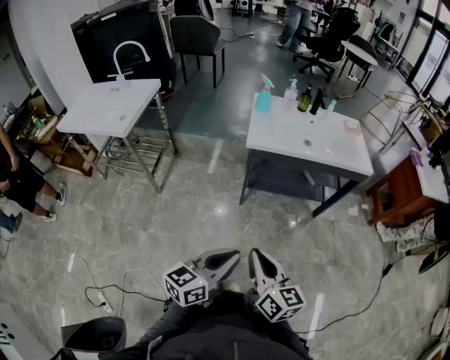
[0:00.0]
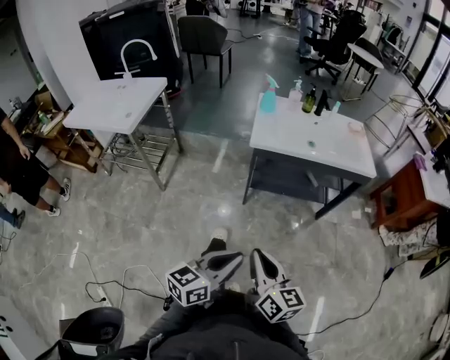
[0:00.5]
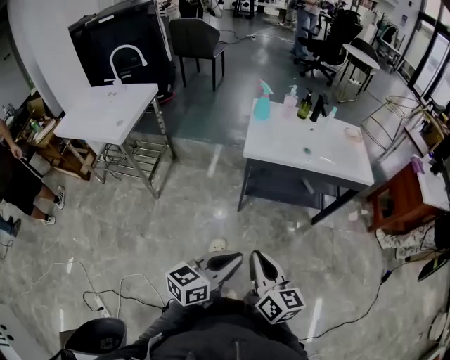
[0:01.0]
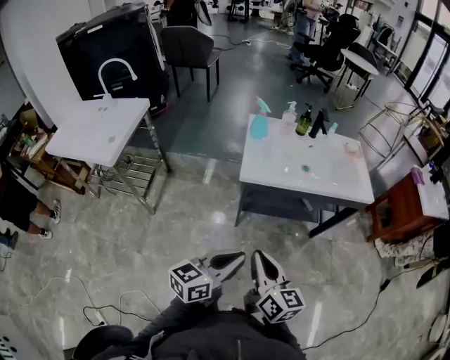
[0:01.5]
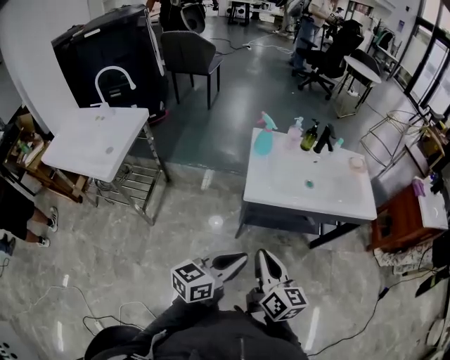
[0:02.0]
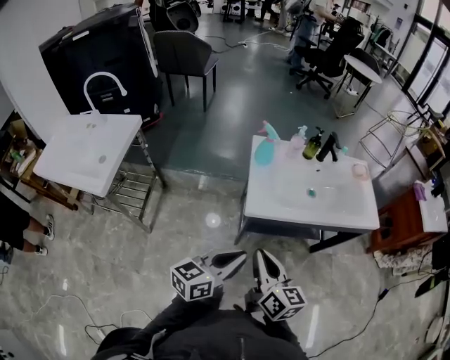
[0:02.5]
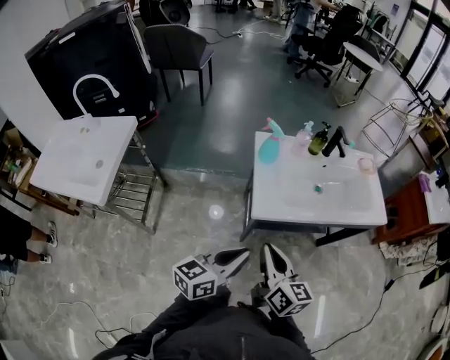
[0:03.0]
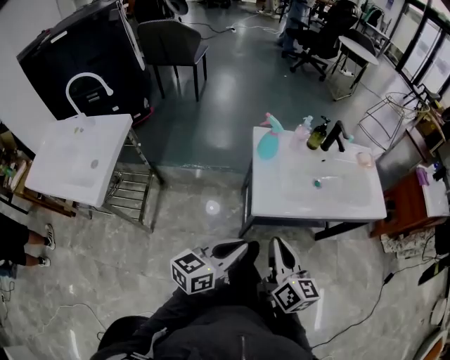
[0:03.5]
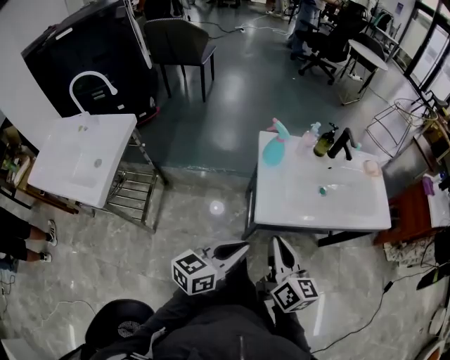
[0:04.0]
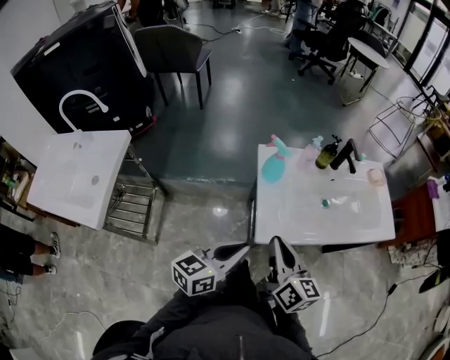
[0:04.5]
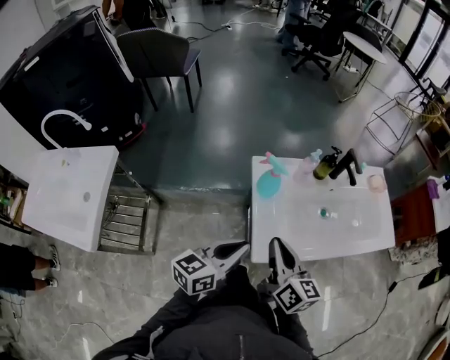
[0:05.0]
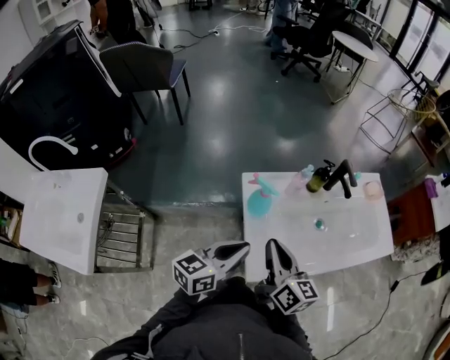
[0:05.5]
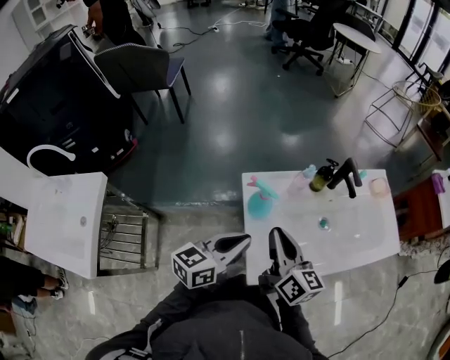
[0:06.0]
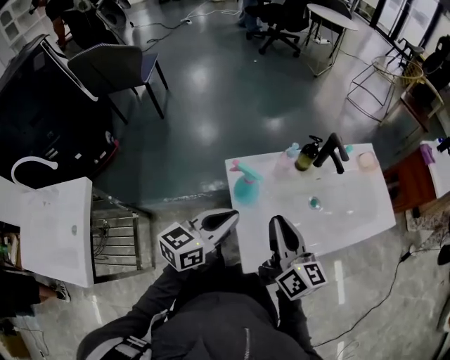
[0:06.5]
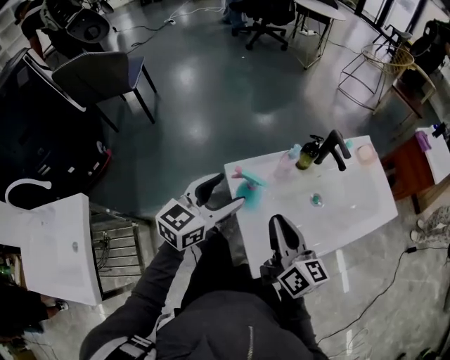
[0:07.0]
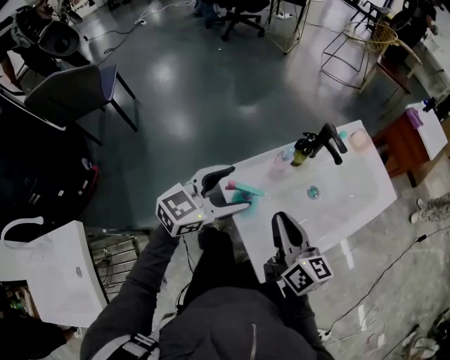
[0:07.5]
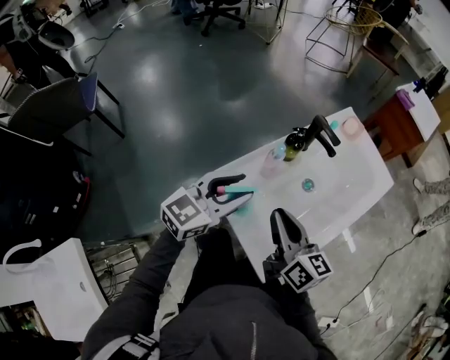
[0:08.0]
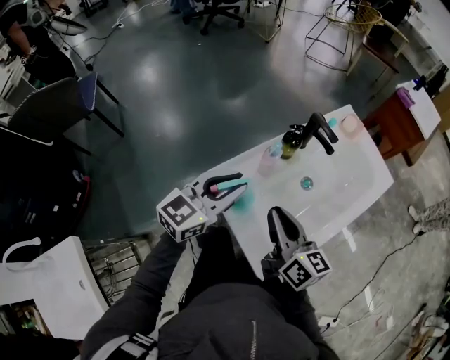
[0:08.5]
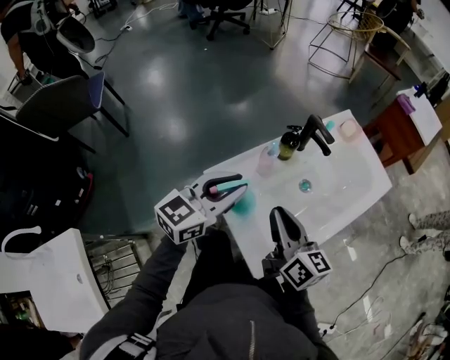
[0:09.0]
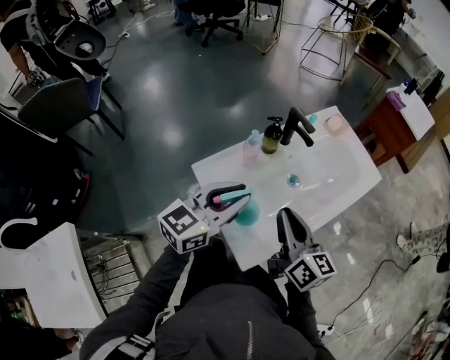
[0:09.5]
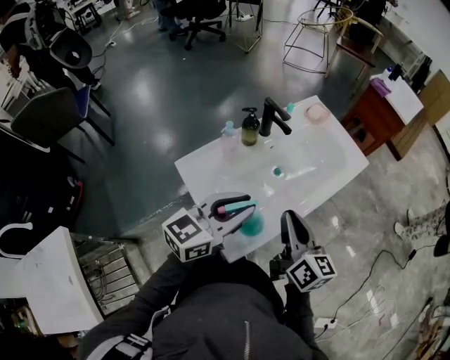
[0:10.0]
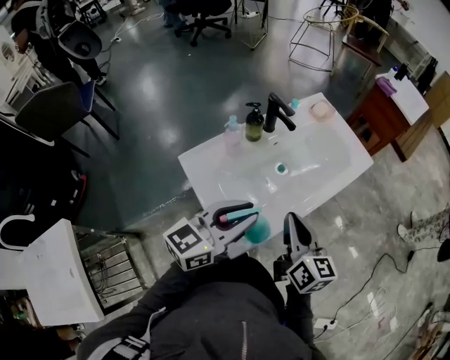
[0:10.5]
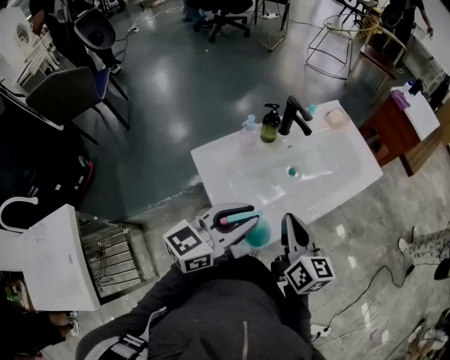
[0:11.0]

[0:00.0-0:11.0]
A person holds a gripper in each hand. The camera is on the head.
0:00.0 to 0:02.0: Both grippers travel together forward, some 25 cm.
0:02.0 to 0:03.5: Both grippers move forward and to the left, some 15 cm.
0:03.5 to 0:05.5: Both grippers travel together forward, some 25 cm.
0:05.5 to 0:07.5: The left gripper heads forward, covering about 15 cm, rotates approximately 40 degrees, and opens; the right gripper heads forward, covering roughly 10 cm.
0:07.5 to 0:09.0: The left gripper closes up.
0:09.0 to 0:11.0: The right gripper moves to the right, about 10 cm, while the left gripper goes roughly 15 cm to the right and backward.

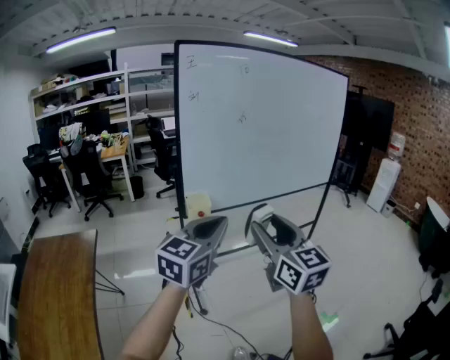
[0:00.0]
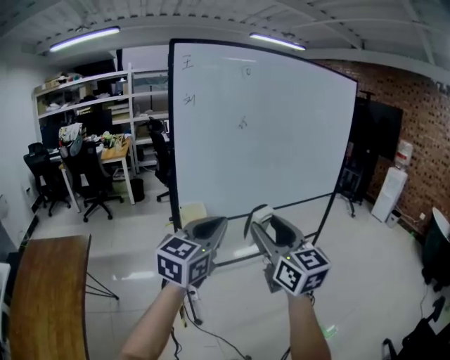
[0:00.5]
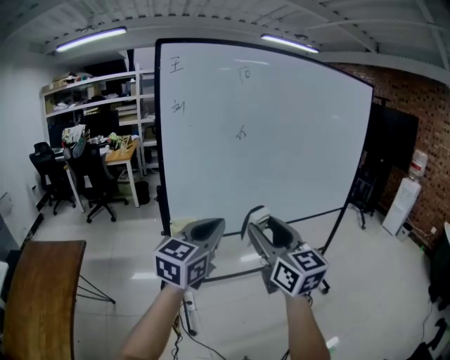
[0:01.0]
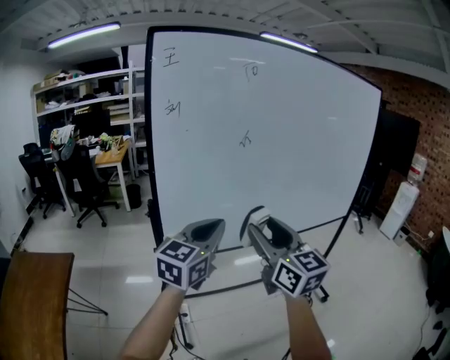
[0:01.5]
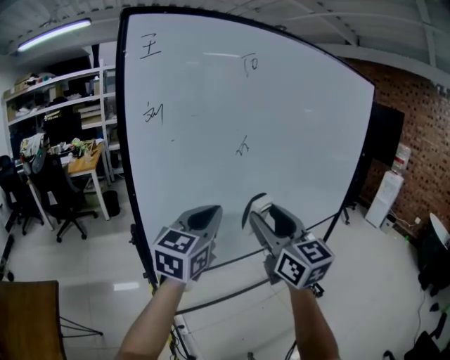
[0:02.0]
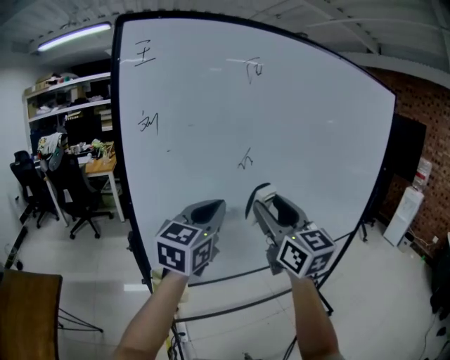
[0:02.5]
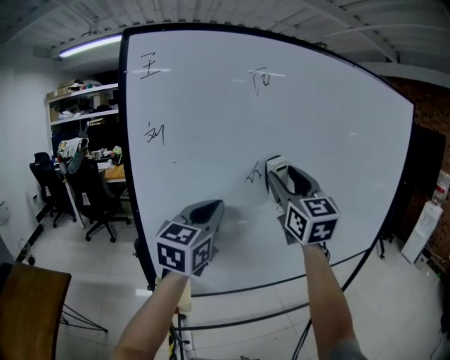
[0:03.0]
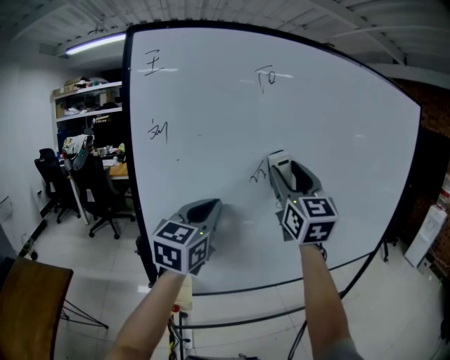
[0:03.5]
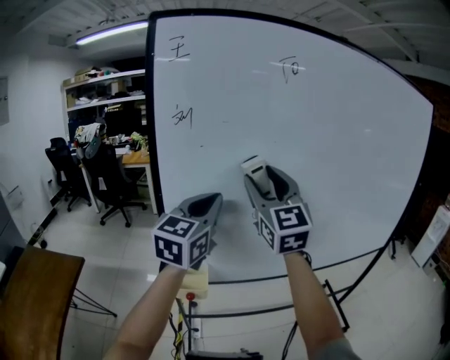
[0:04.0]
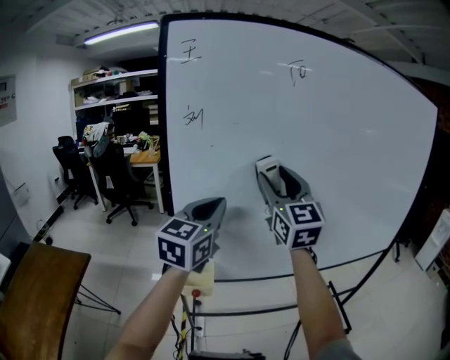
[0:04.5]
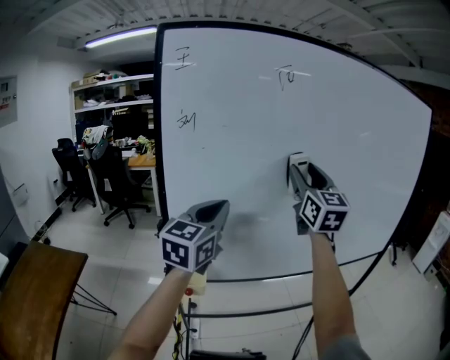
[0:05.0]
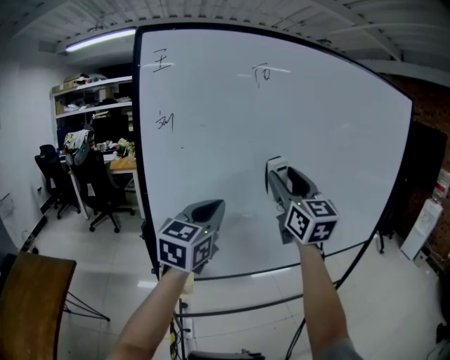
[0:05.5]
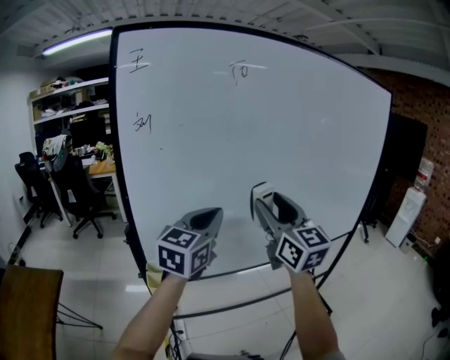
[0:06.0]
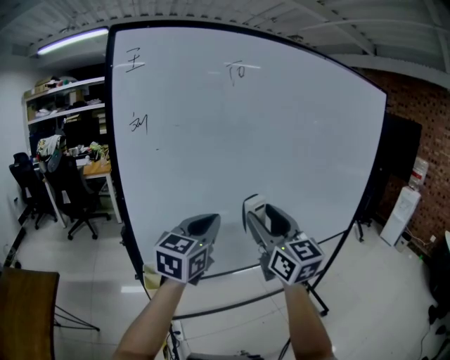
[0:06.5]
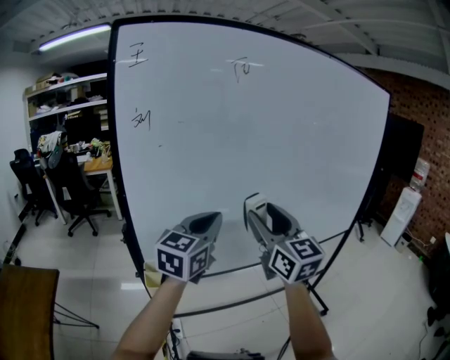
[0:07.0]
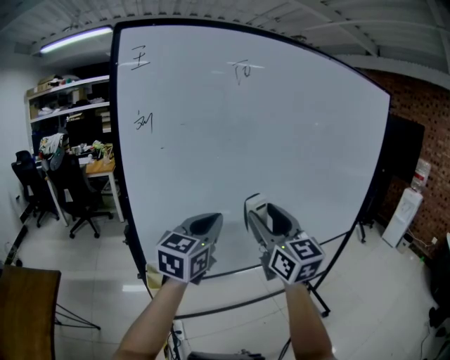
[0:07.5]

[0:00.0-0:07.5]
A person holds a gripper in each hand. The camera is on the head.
0:00.0 to 0:02.0: Both grippers travel together forward, roughly 40 cm.
0:02.0 to 0:04.0: The right gripper is displaced forward, upward and to the left by roughly 15 cm, and turns by roughly 20 degrees. Meanwhile the left gripper travels to the left and forward by about 10 cm.
0:04.0 to 0:05.5: The left gripper shifts roughly 5 cm to the right; the right gripper shifts some 10 cm to the right.
0:05.5 to 0:07.5: The right gripper moves downward and backward, some 10 cm. Meanwhile the left gripper changes place by about 5 cm.

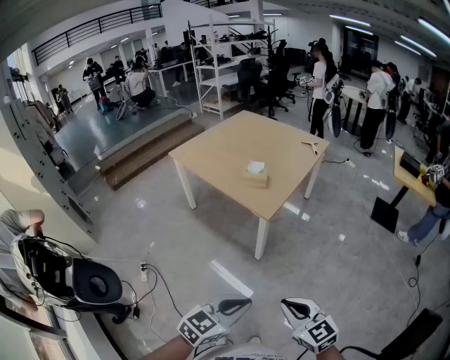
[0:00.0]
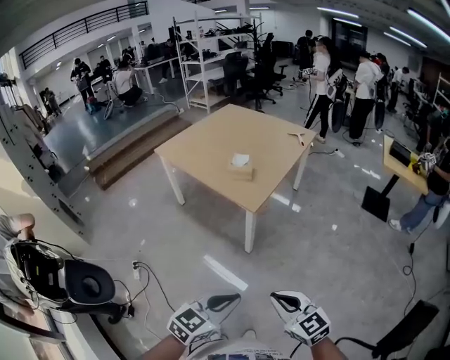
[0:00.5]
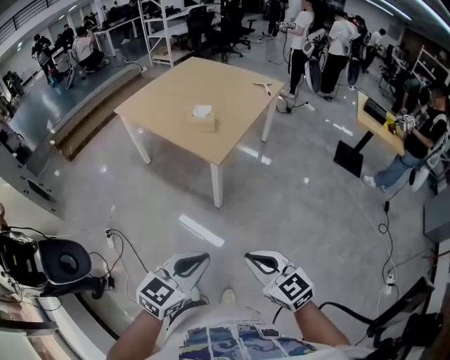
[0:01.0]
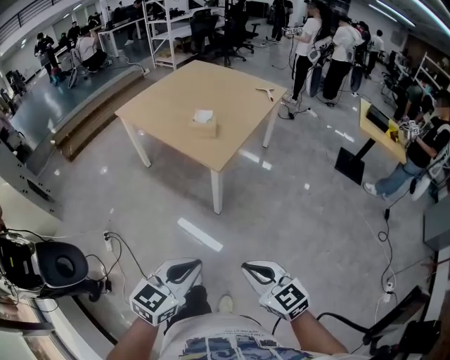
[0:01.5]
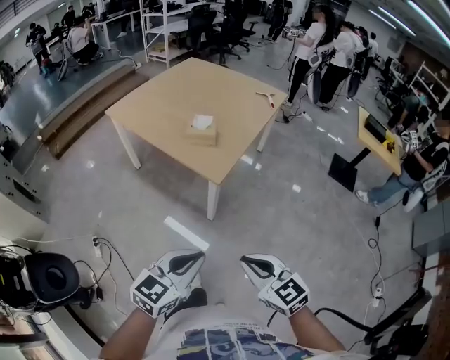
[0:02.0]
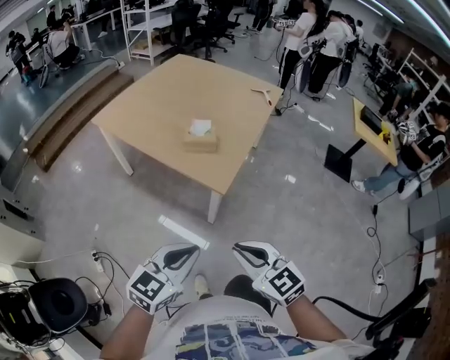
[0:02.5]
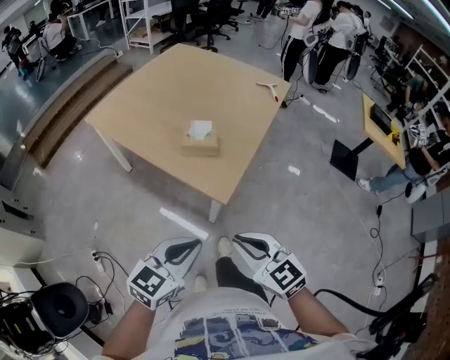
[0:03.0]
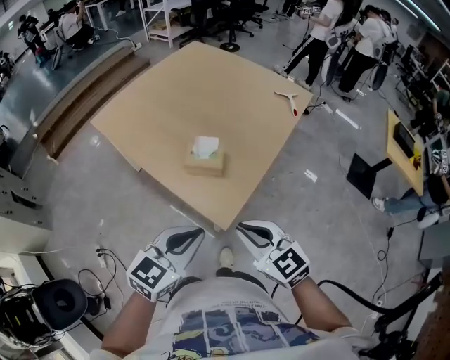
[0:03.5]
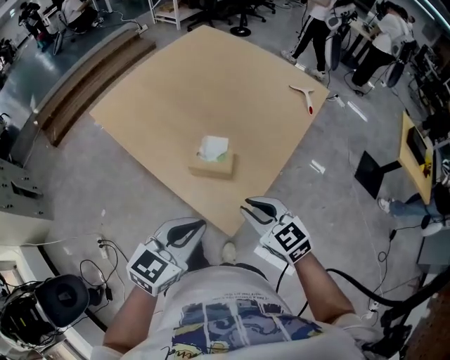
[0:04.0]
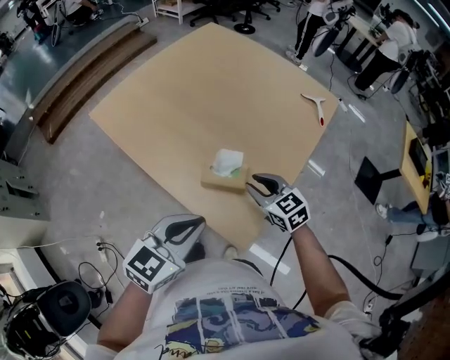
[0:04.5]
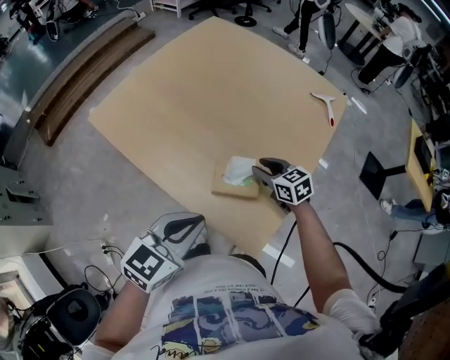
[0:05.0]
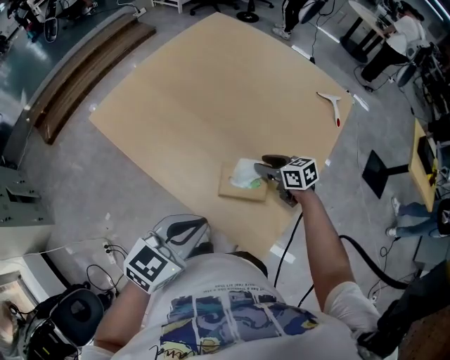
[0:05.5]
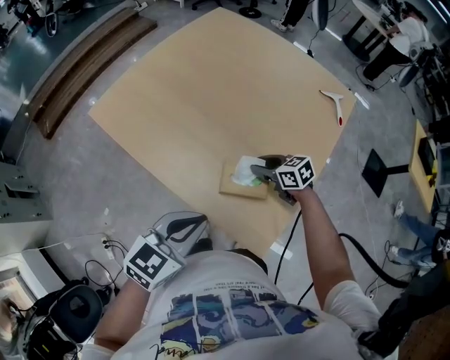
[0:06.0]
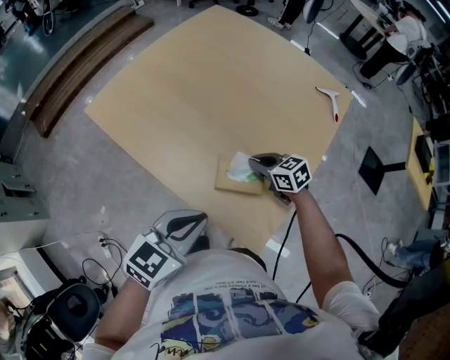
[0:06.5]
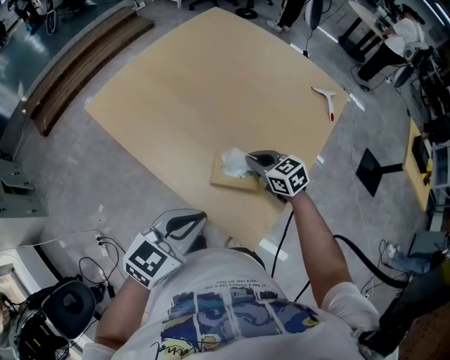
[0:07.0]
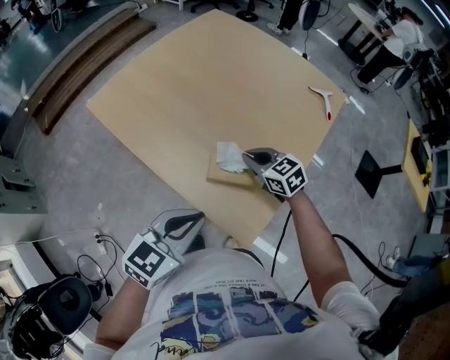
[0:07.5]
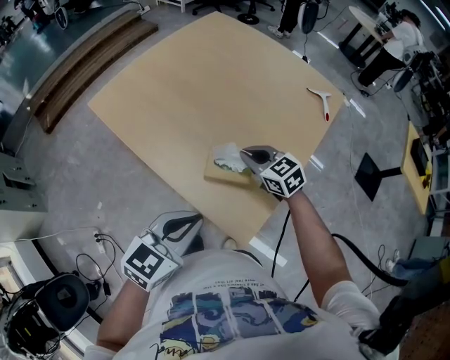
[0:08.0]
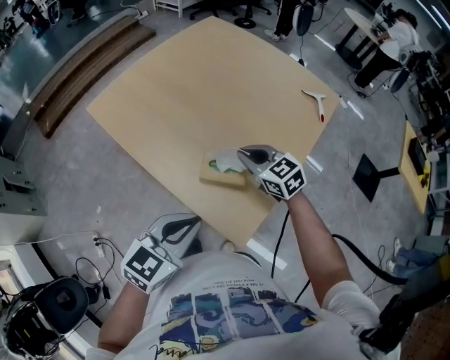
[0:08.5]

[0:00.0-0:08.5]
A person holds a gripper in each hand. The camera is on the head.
0:00.0 to 0:02.0: The grippers both shift forward by approximately 10 cm.
0:02.0 to 0:04.0: Both grippers are carried forward, approximately 40 cm.
0:04.0 to 0:06.5: The left gripper travels forward and to the left by about 15 cm; the right gripper travels forward and downward by roughly 30 cm, rotates approximately 20 degrees, and opens and closes again.
0:06.5 to 0:08.5: The right gripper travels upward by some 10 cm; the left gripper shifts approximately 5 cm backward.
